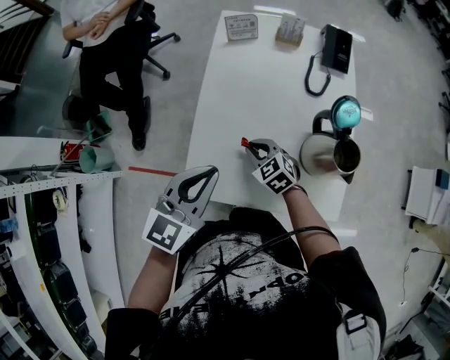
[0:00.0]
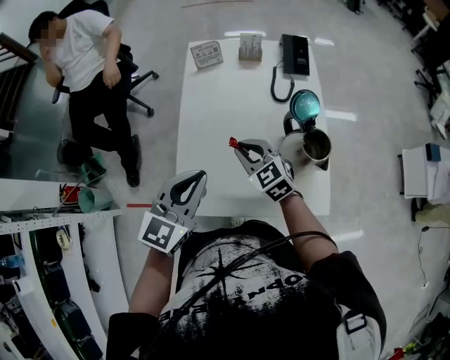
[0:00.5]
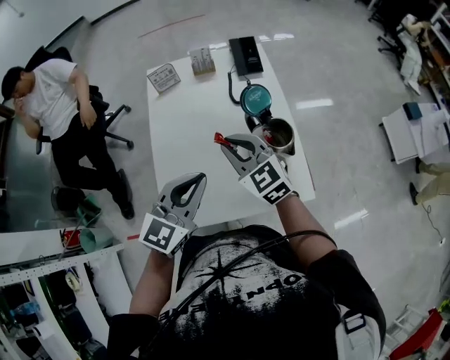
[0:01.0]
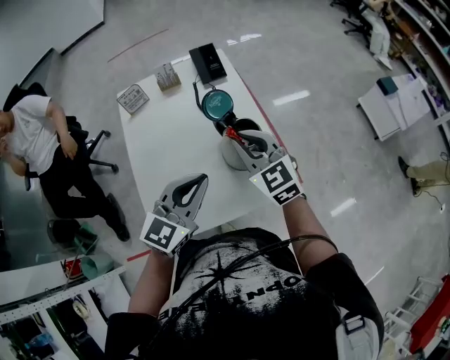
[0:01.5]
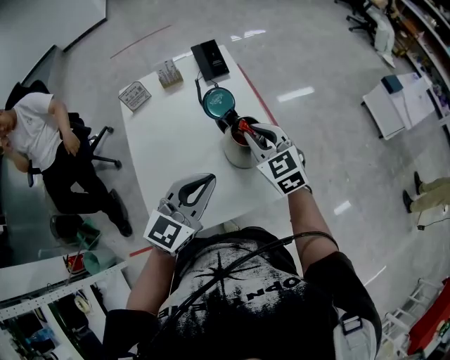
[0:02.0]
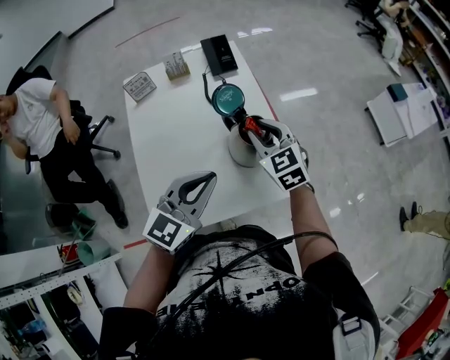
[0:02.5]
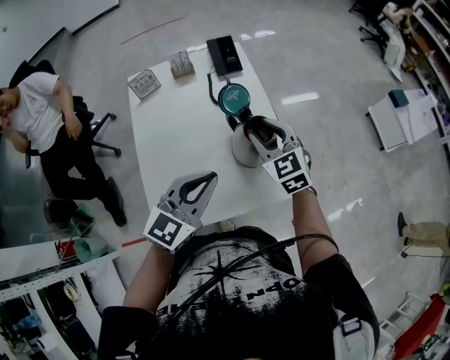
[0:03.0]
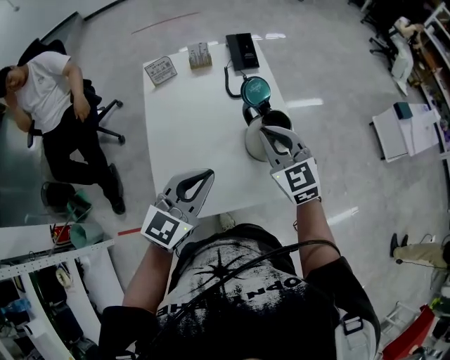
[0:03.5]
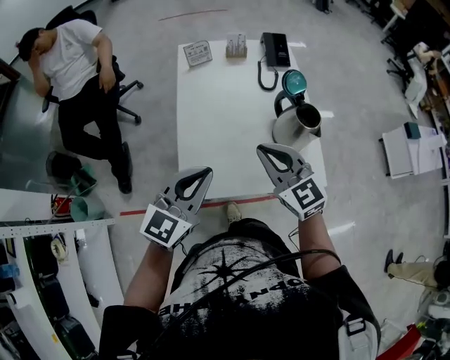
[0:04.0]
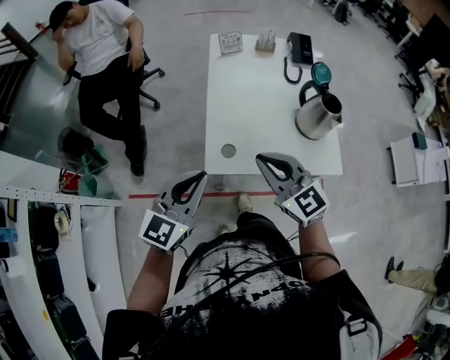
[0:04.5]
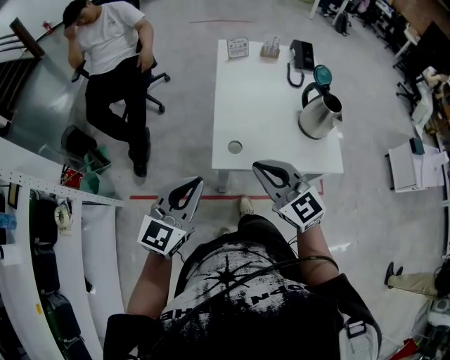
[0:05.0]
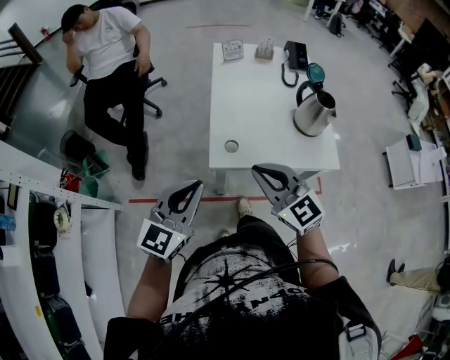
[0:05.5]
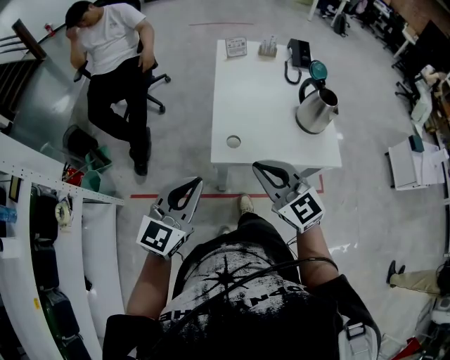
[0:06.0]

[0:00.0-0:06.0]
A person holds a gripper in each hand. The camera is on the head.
0:00.0 to 0:02.0: The right gripper changes place by some 30 cm, and swivels some 40 degrees, while the left gripper ends up approximately 20 cm from where it was, and turns by some 30 degrees.
0:02.0 to 0:04.0: The left gripper is displaced to the left and backward by roughly 20 cm. The right gripper heads backward and to the left, covering some 20 cm, swivels about 20 degrees, and opens, then closes again.
0:04.0 to 0:06.0: The grippers both shift backward and to the left by about 25 cm.

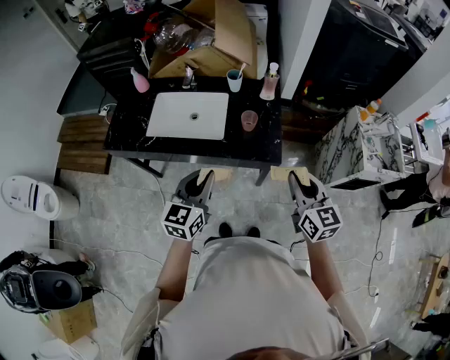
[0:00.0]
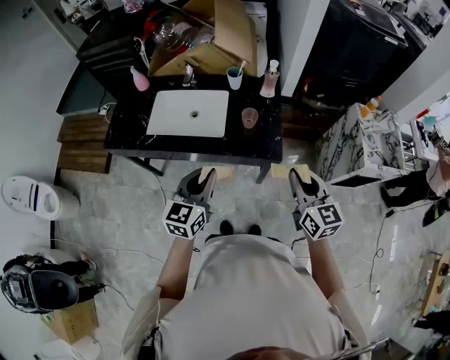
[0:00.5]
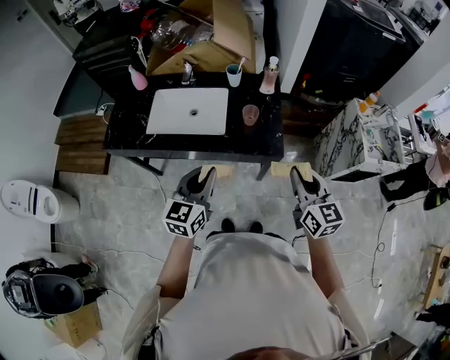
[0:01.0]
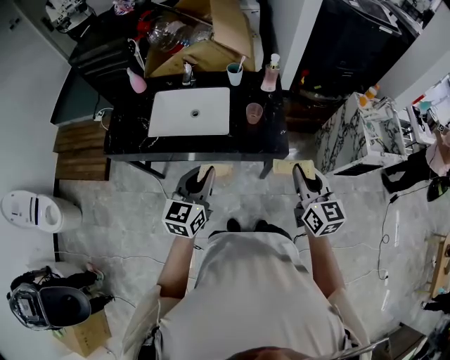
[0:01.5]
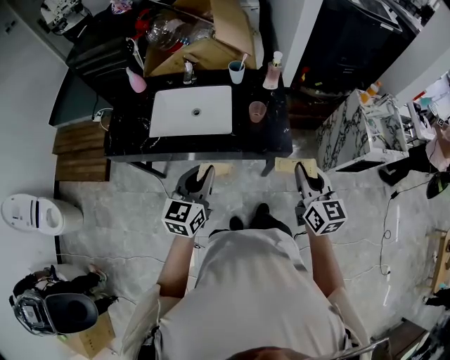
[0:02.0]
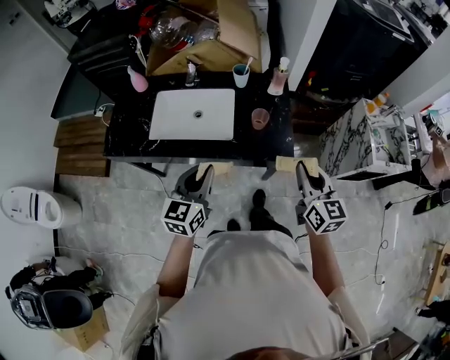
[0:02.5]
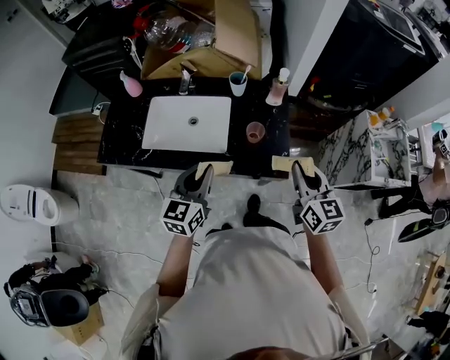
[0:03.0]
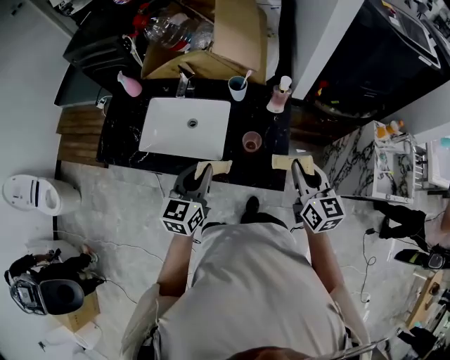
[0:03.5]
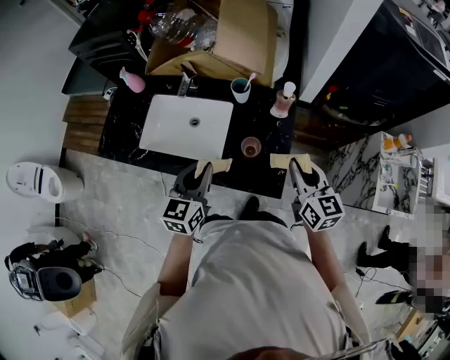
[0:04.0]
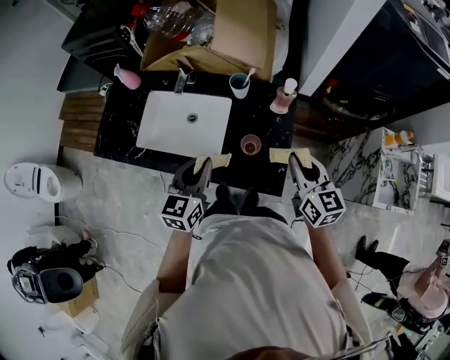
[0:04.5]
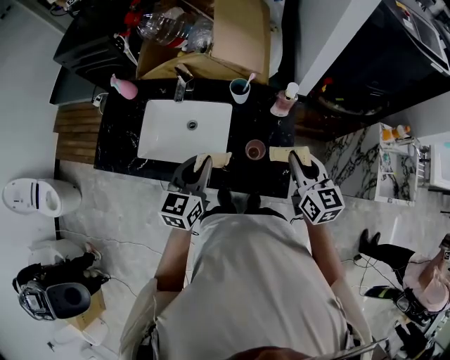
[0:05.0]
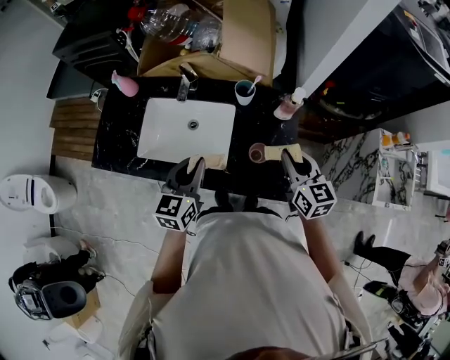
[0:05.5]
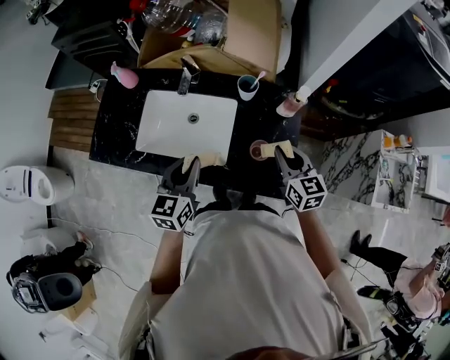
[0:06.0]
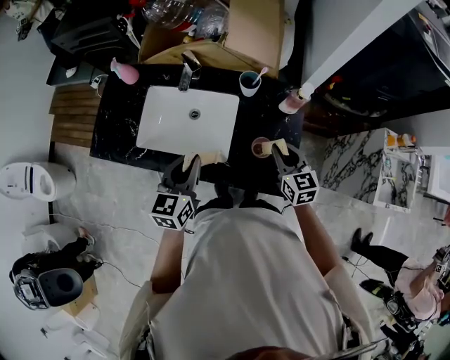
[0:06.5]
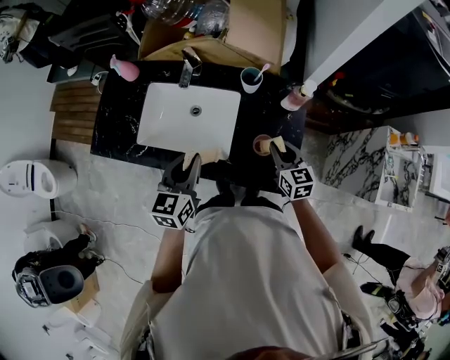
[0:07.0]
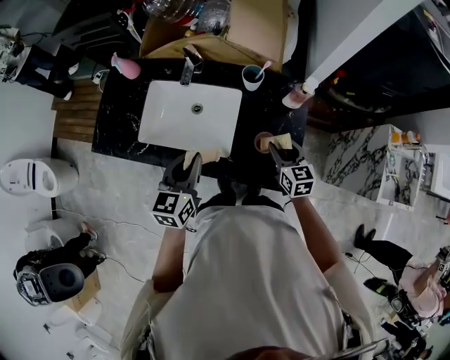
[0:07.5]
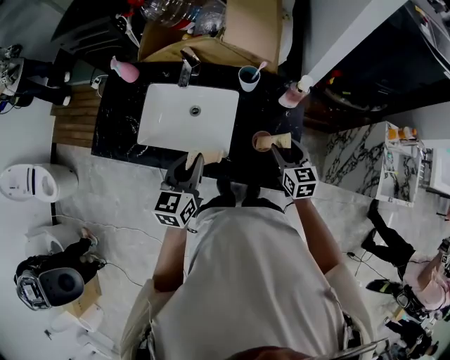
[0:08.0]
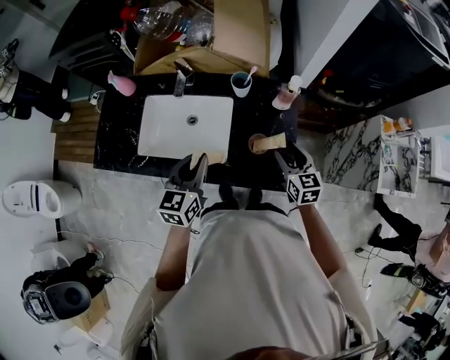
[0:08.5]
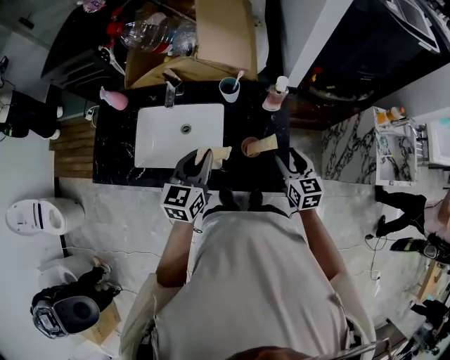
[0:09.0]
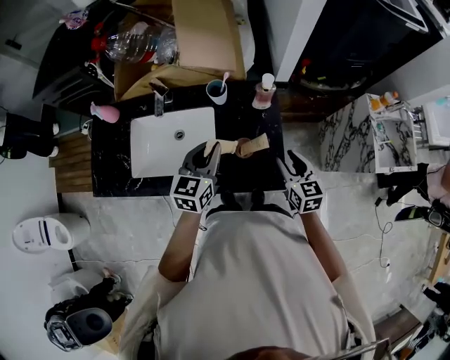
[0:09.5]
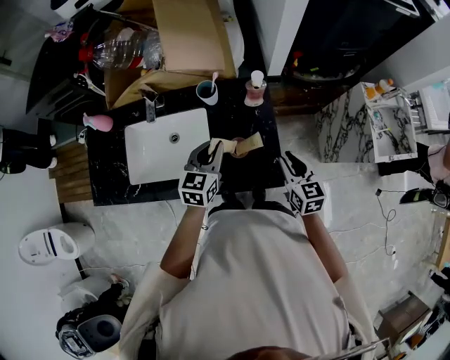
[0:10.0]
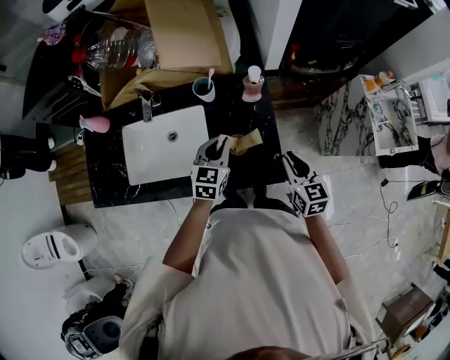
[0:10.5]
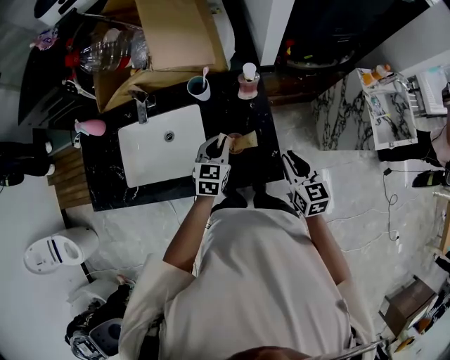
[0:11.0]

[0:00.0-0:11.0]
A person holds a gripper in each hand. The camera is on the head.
0:00.0 to 0:02.0: The left gripper moves to the left, about 5 cm.
0:02.0 to 0:03.5: The two grippers go some 20 cm forward.
0:03.5 to 0:05.5: The right gripper heads forward and to the left, covering some 10 cm. The left gripper is displaced forward by some 10 cm.
0:05.5 to 0:07.5: The right gripper is displaced downward by approximately 15 cm, and opens up.
0:07.5 to 0:09.0: Both grippers travel together to the right, approximately 5 cm.
0:09.0 to 0:11.0: The right gripper shifts some 5 cm to the right, and closes. Meanwhile the left gripper is displaced downward, to the right and forward by some 20 cm.

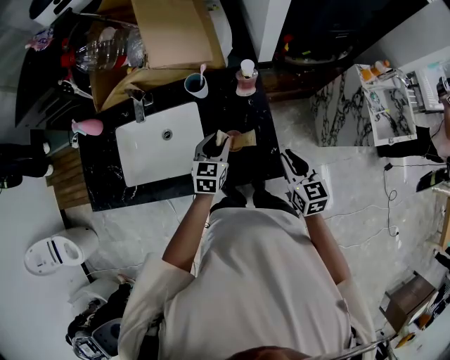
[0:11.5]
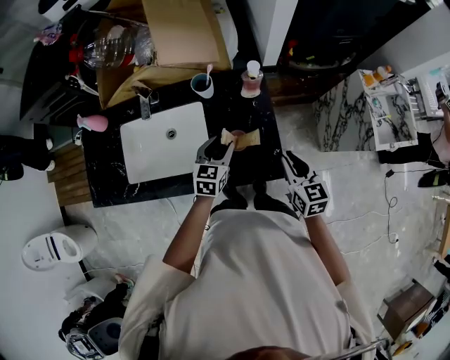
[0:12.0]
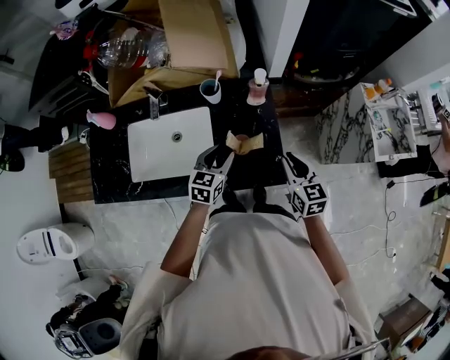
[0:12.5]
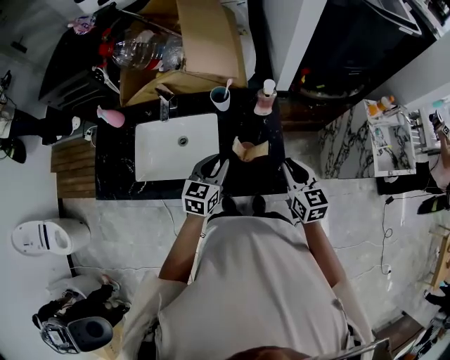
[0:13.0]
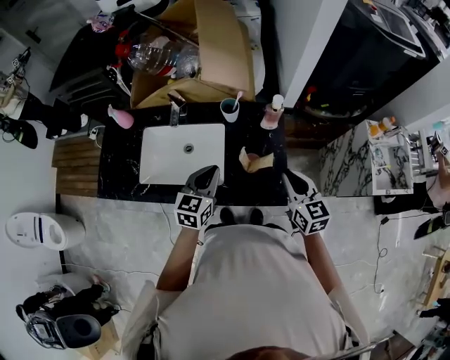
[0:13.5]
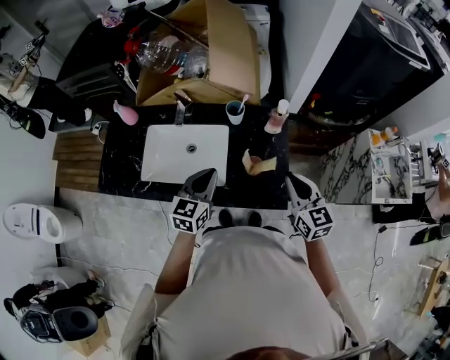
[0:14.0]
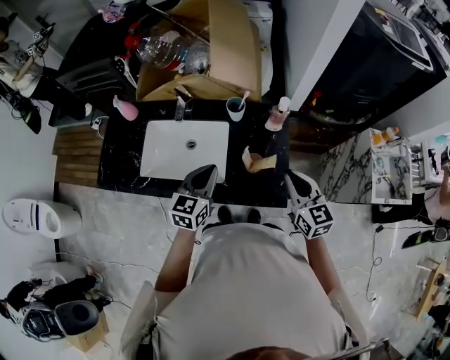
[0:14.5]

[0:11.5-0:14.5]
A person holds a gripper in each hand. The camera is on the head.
0:11.5 to 0:13.0: The left gripper heads upward and backward, covering approximately 10 cm; the right gripper shifts some 5 cm upward.
0:13.0 to 0:14.5: The right gripper goes some 5 cm upward. The left gripper goes some 10 cm upward and to the left, and closes up.

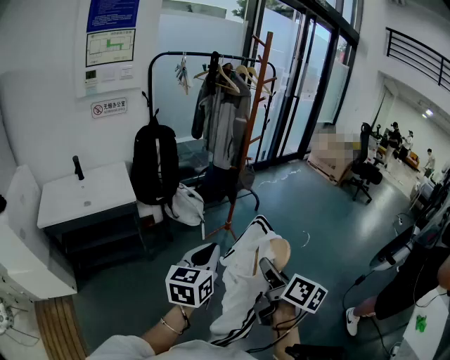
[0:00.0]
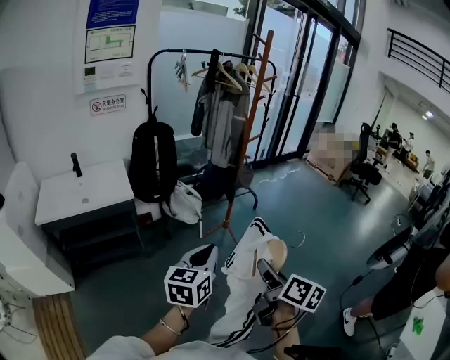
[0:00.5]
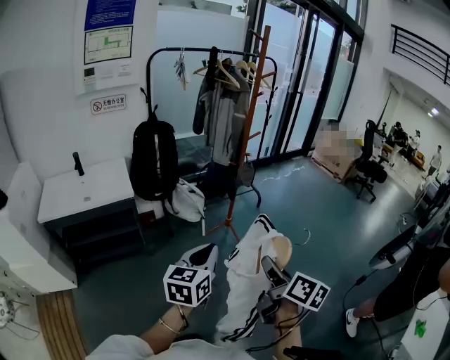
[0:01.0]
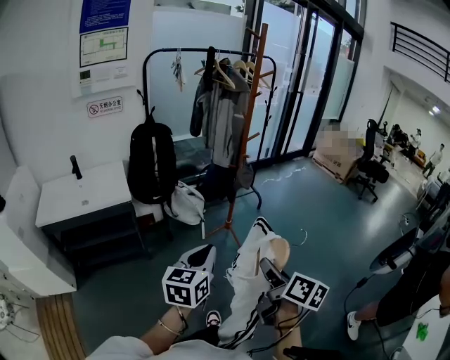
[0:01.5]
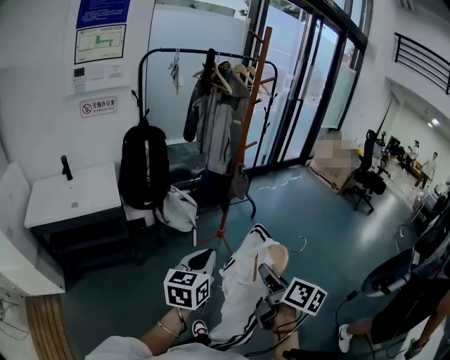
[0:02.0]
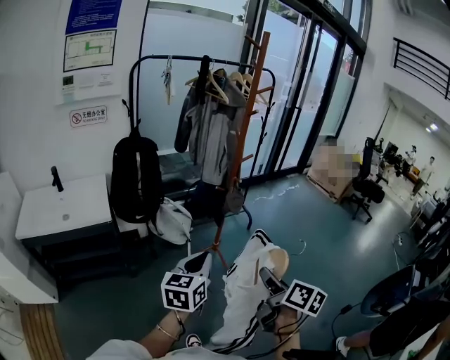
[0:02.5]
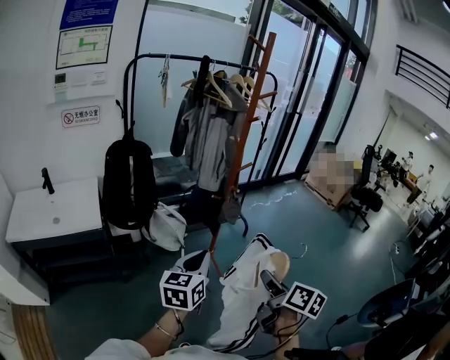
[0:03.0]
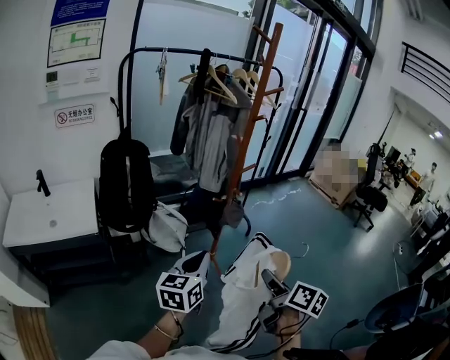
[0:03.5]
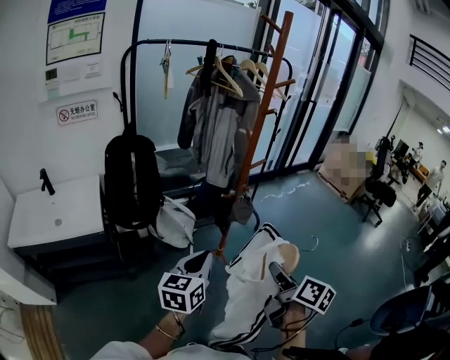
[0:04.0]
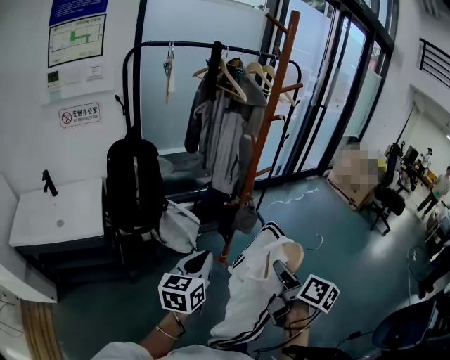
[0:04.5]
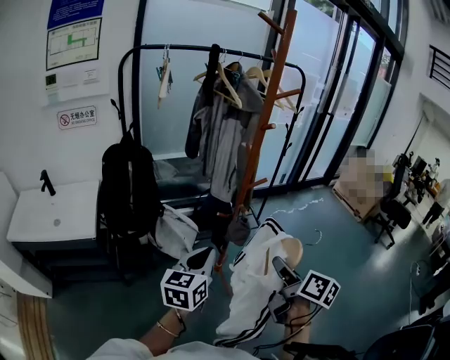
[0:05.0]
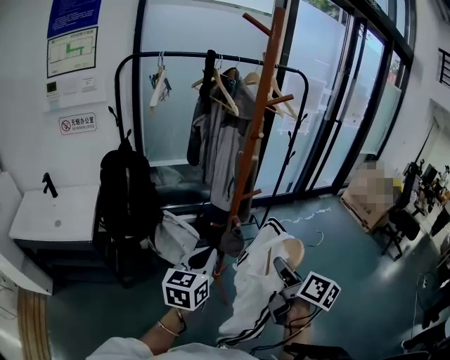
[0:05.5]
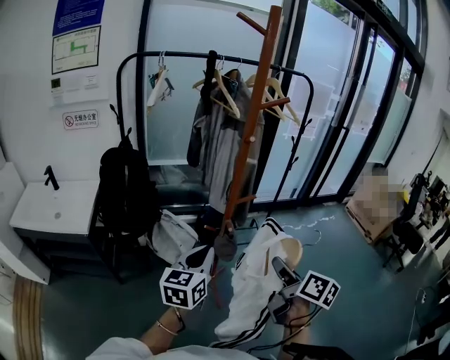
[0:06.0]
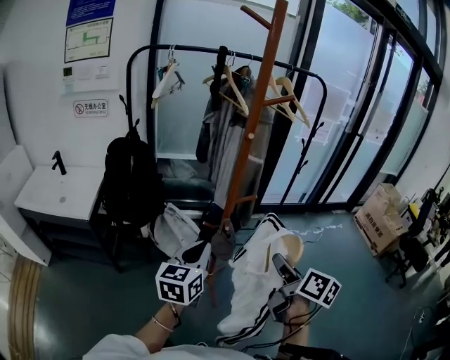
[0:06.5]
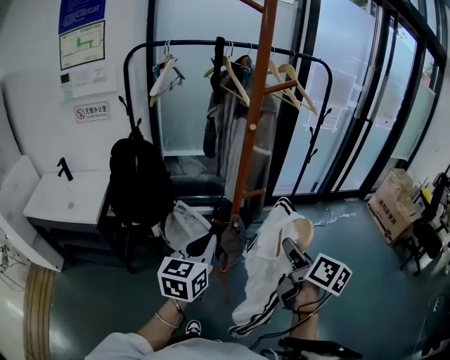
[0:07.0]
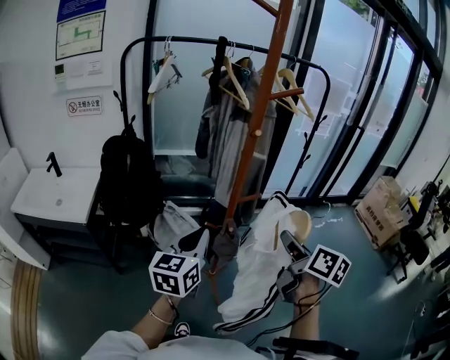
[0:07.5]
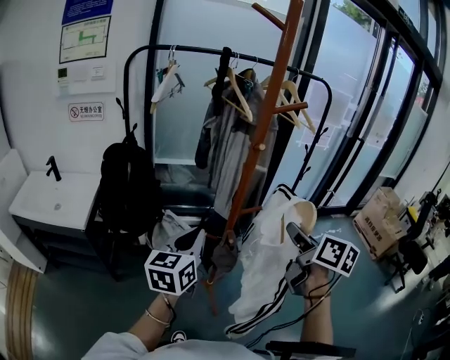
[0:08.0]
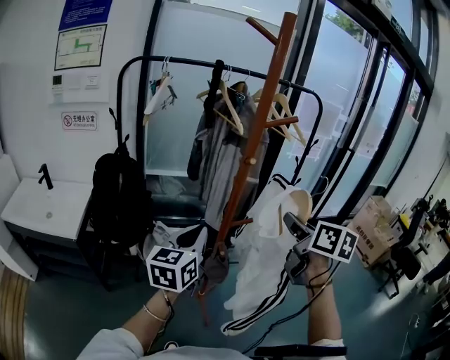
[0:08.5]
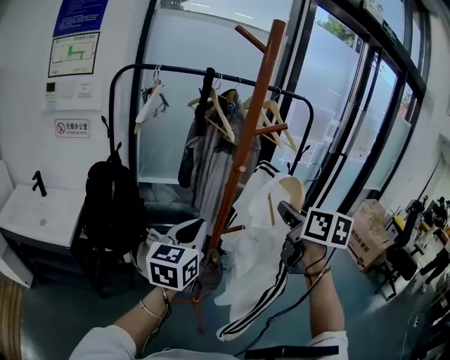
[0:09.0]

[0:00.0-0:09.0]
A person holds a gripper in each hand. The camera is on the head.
0:00.0 to 0:02.0: The grippers both shift forward and to the right by roughly 10 cm.
0:02.0 to 0:04.5: Both grippers travel together forward, some 30 cm.
0:04.5 to 0:07.0: The right gripper travels forward and to the right by approximately 30 cm; the left gripper heads to the right and forward, covering about 20 cm.
0:07.0 to 0:09.0: The right gripper is displaced upward and forward by about 20 cm, and rotates approximately 30 degrees. The left gripper is displaced upward and forward by roughly 15 cm.
